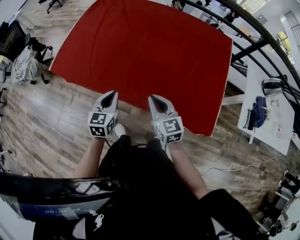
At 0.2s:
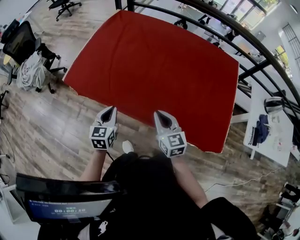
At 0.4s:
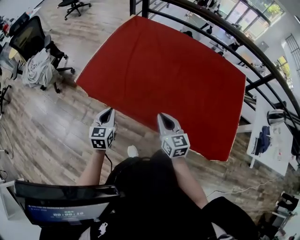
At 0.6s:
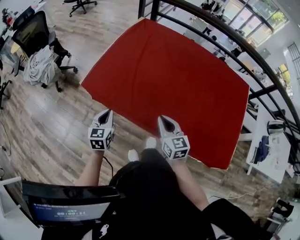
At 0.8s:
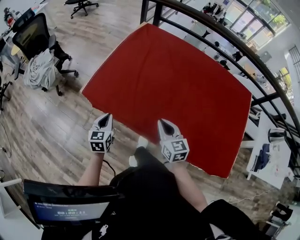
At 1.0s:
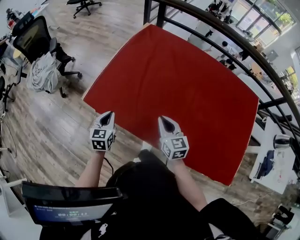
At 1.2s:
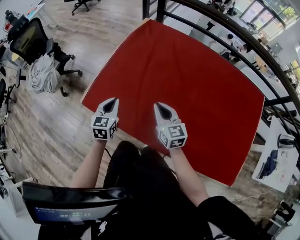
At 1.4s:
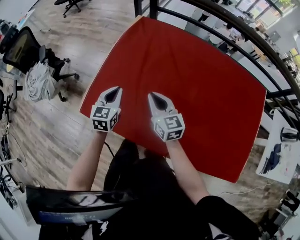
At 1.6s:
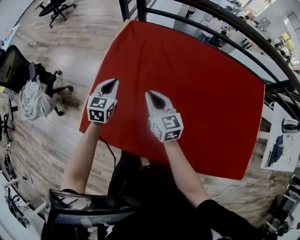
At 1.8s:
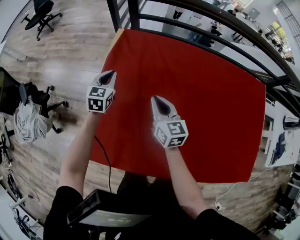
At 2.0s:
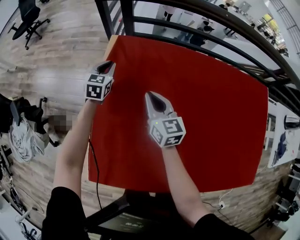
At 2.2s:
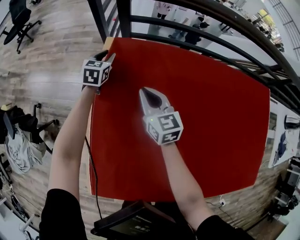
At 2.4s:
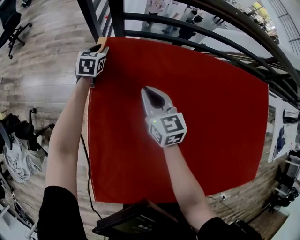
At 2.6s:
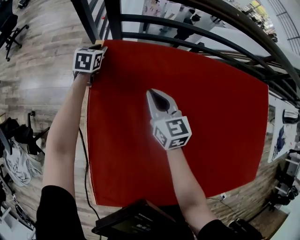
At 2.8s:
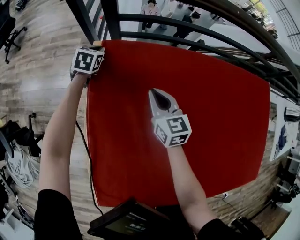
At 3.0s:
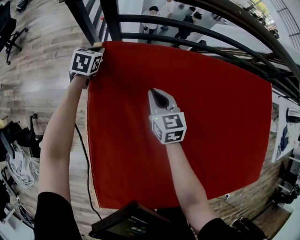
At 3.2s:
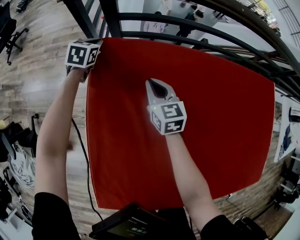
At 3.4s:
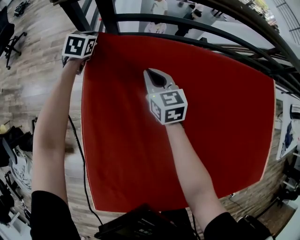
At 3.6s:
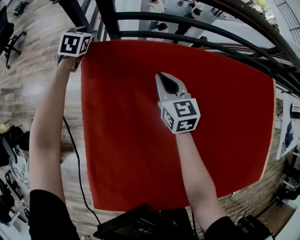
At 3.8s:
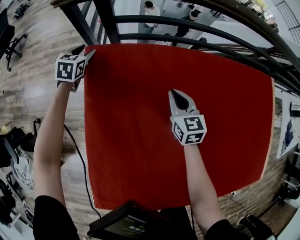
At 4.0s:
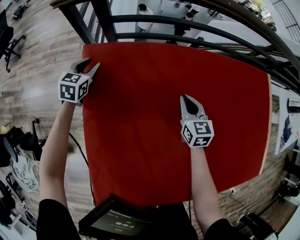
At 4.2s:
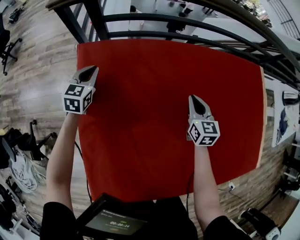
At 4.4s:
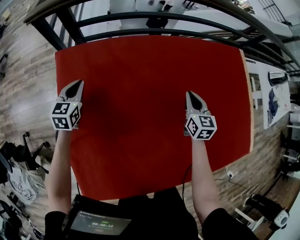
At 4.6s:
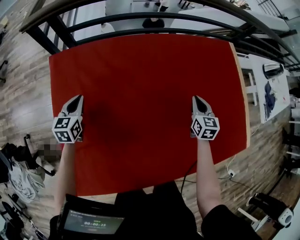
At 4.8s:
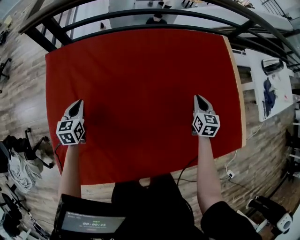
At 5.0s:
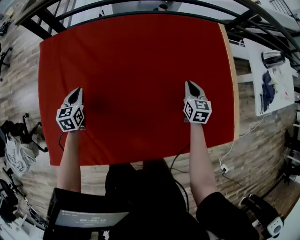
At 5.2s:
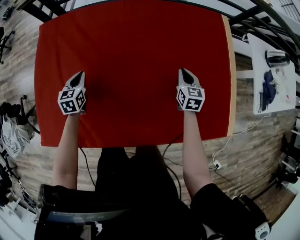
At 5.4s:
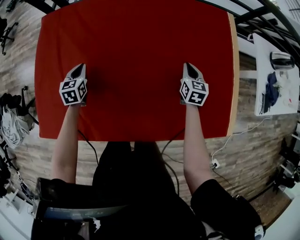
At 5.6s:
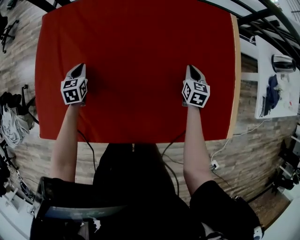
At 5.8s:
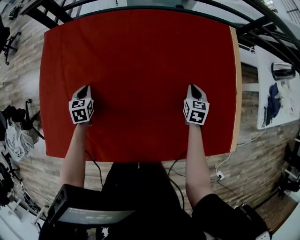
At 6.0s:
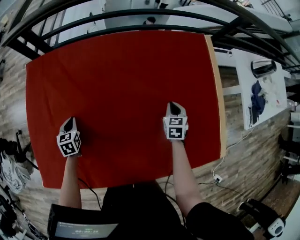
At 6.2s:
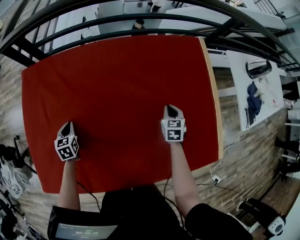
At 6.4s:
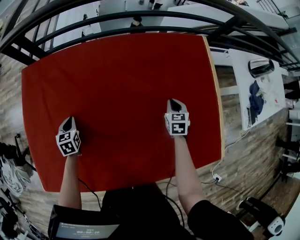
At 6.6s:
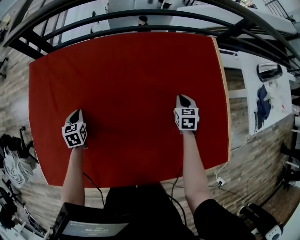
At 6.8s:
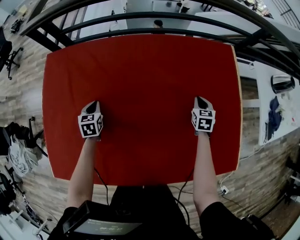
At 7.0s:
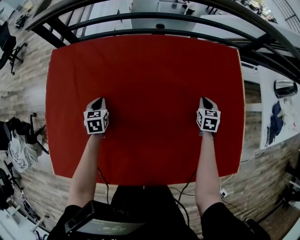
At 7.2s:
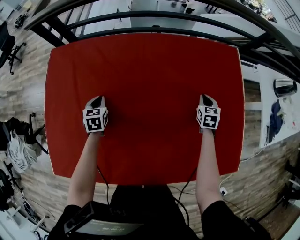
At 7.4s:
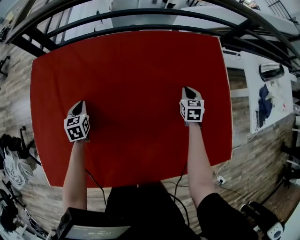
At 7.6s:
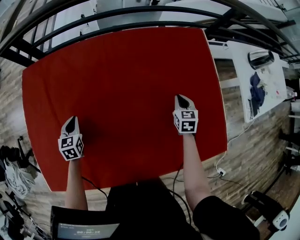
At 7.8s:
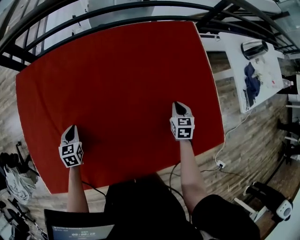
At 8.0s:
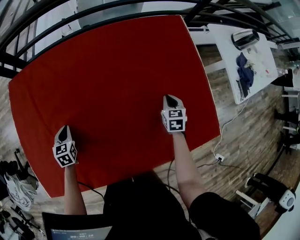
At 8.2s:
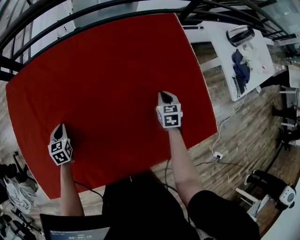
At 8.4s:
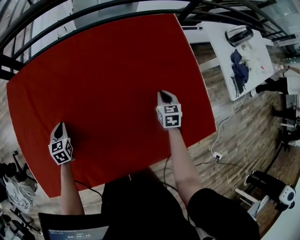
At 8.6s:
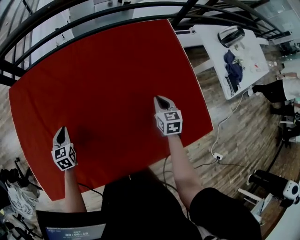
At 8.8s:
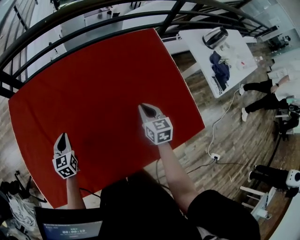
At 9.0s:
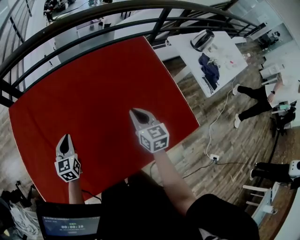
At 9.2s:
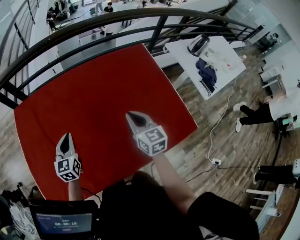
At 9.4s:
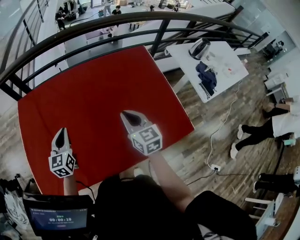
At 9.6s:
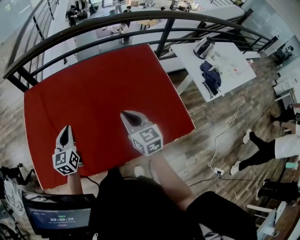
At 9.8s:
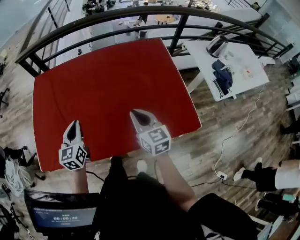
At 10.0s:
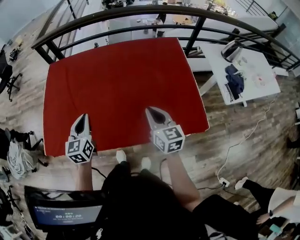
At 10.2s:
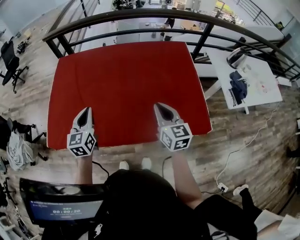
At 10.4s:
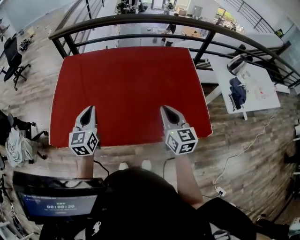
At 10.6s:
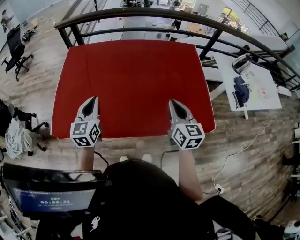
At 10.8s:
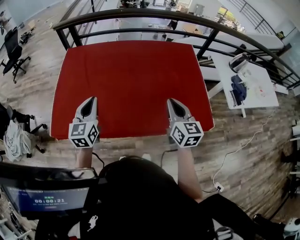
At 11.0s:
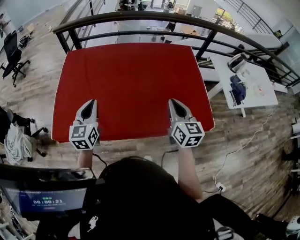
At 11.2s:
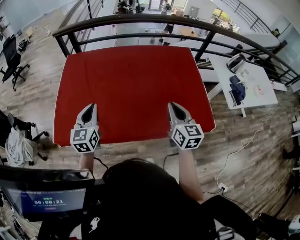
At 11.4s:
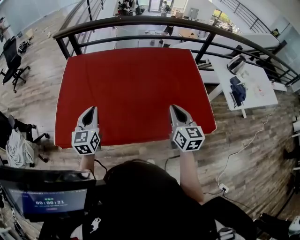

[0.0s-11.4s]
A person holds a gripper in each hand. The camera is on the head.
0.0s to 1.4s: The two grippers travel together, forward and to the left, some 50 cm.
1.4s to 2.8s: The left gripper shifts some 60 cm forward, changes its angle by some 30 degrees, and opens and closes again. Meanwhile the right gripper goes roughly 35 cm forward, and swivels approximately 30 degrees.
2.8s to 4.2s: The right gripper is displaced to the right by roughly 20 cm, while the left gripper shifts some 15 cm backward, and opens, then closes again.
4.2s to 5.6s: The left gripper heads to the right and backward, covering roughly 40 cm, and turns by some 20 degrees. Meanwhile the right gripper shifts approximately 40 cm to the right.
5.6s to 7.2s: Both grippers move forward, approximately 10 cm.
7.2s to 8.6s: The right gripper goes approximately 15 cm backward; the left gripper moves backward, roughly 10 cm.
8.6s to 10.0s: The right gripper heads backward and upward, covering some 30 cm, and turns by approximately 30 degrees, while the left gripper moves backward, upward and to the right, approximately 35 cm, and changes its angle by some 20 degrees.
10.0s to 11.4s: The right gripper travels upward by about 5 cm. Meanwhile the left gripper moves to the left, roughly 10 cm.

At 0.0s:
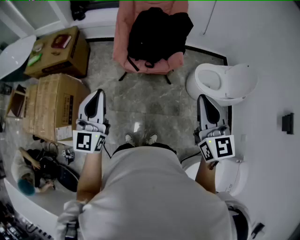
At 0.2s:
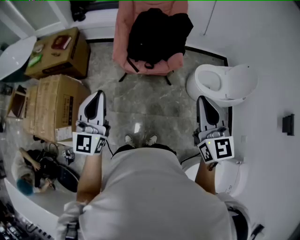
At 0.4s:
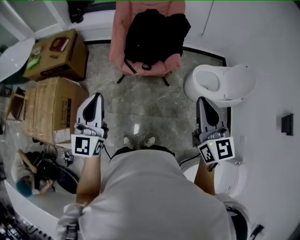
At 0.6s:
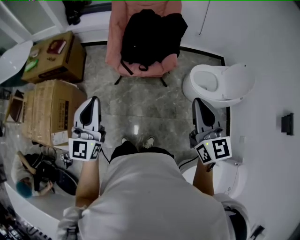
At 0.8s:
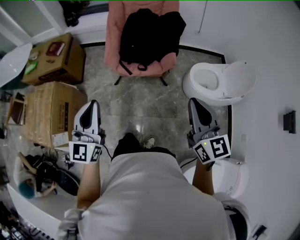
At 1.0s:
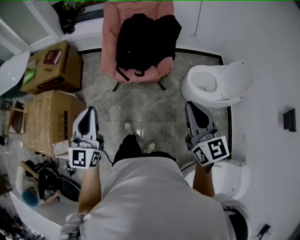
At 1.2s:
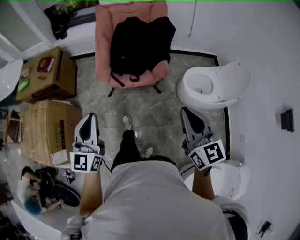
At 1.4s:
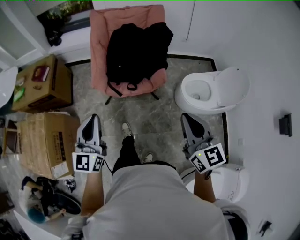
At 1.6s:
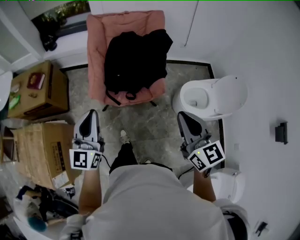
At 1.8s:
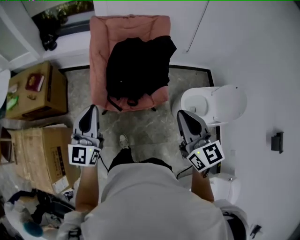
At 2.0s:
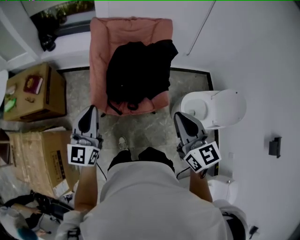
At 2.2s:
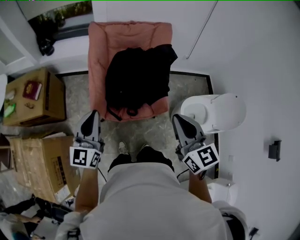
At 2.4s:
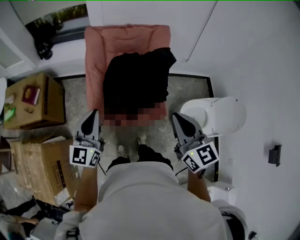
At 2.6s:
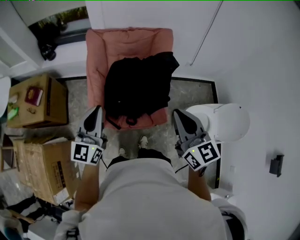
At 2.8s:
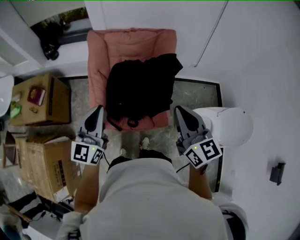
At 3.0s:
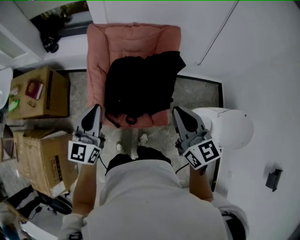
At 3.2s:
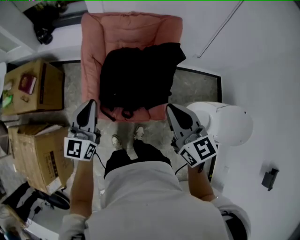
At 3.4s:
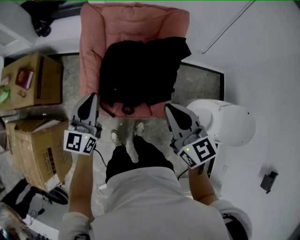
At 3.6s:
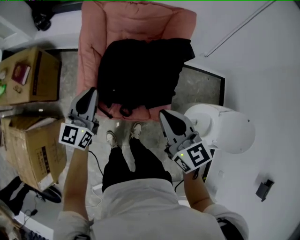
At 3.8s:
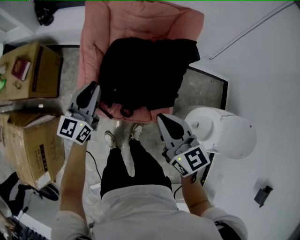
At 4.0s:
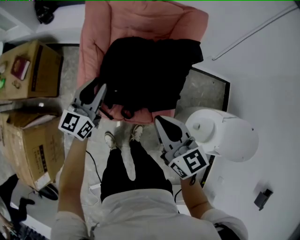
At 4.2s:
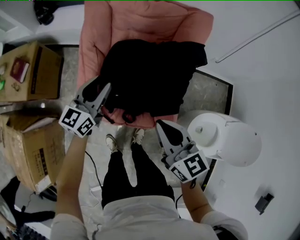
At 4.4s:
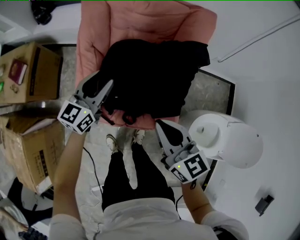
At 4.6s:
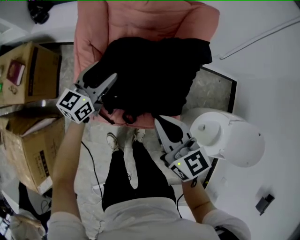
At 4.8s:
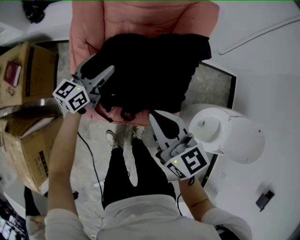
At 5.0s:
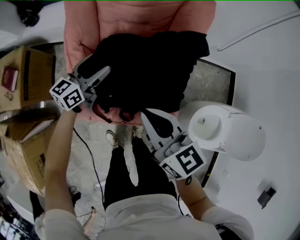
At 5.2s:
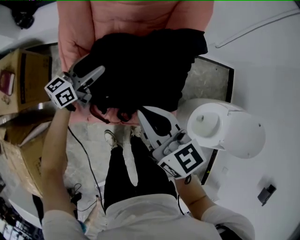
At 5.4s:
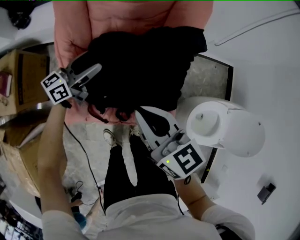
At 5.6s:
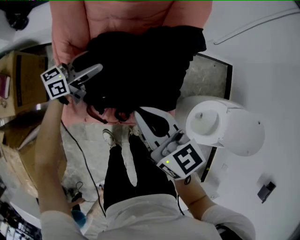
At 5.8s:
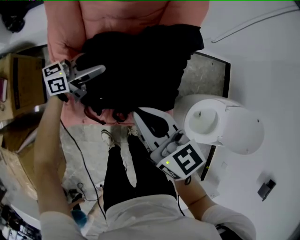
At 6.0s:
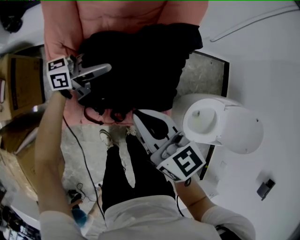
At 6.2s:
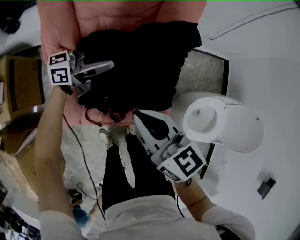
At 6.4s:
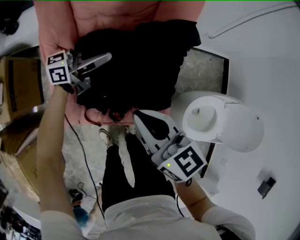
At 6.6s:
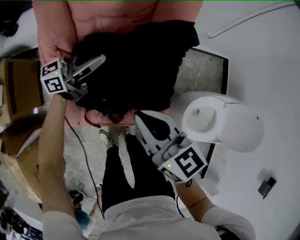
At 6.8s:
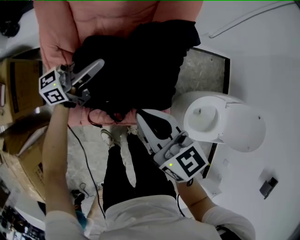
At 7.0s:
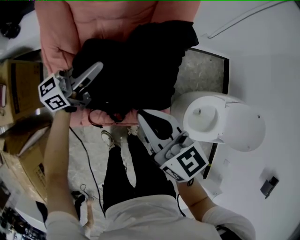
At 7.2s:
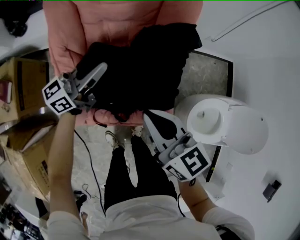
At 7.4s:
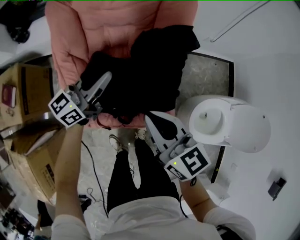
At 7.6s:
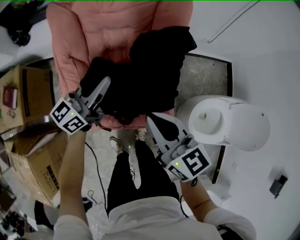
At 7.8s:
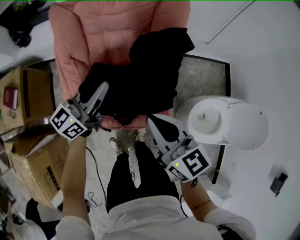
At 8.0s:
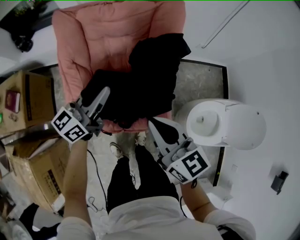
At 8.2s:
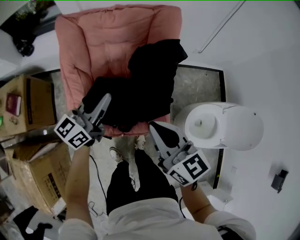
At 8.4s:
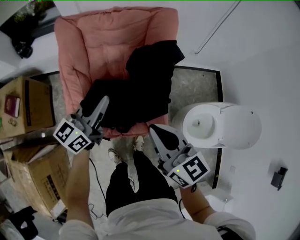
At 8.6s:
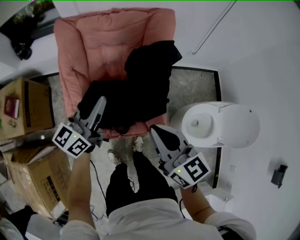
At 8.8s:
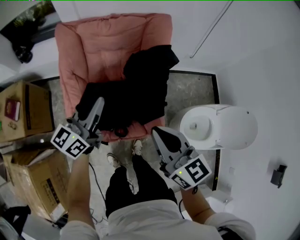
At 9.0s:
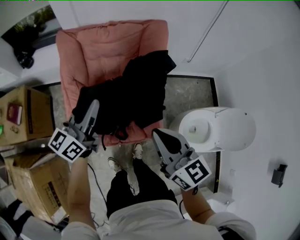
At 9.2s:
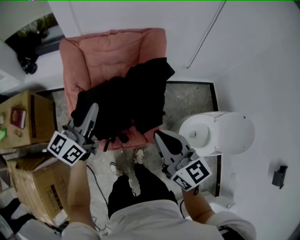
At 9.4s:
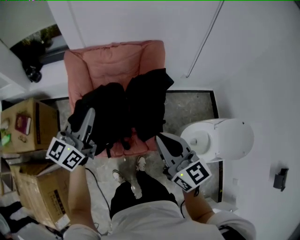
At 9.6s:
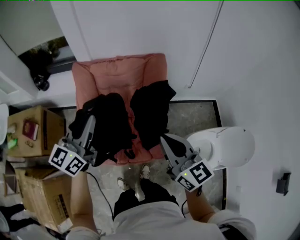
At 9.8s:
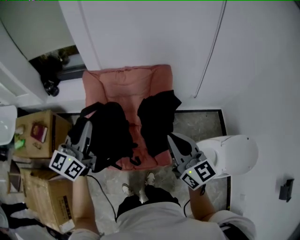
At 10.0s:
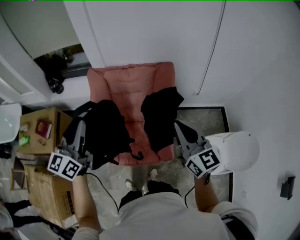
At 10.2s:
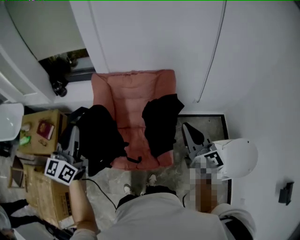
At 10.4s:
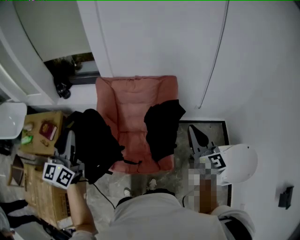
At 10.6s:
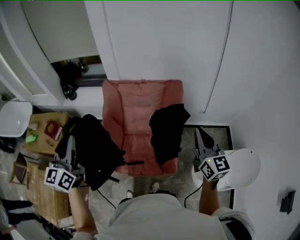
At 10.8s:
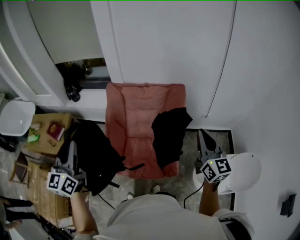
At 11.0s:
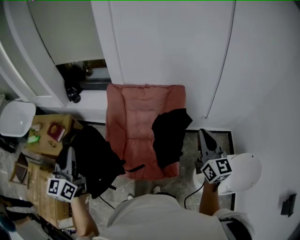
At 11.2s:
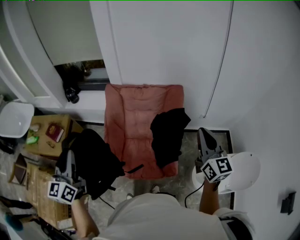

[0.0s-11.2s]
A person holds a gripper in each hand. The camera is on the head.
0.0s to 1.6s: The two grippers go roughly 20 cm forward.
1.6s to 3.2s: Both grippers travel together forward, approximately 30 cm.
3.2s to 4.8s: The right gripper shifts some 20 cm downward, forward and to the left, while the left gripper travels forward and downward by about 30 cm, rotates roughly 30 degrees, and opens.
4.8s to 6.4s: The left gripper is displaced to the right and forward by some 10 cm, rotates about 40 degrees, and closes.
6.4s to 8.0s: The right gripper is displaced upward by approximately 5 cm. Meanwhile the left gripper heads backward and upward, covering about 15 cm, turns by approximately 30 degrees, and closes its fingers.
8.0s to 9.6s: The grippers both shift upward by about 15 cm. The left gripper rotates about 20 degrees.
9.6s to 11.2s: The right gripper shifts roughly 15 cm upward and to the right; the left gripper shifts roughly 25 cm to the left and backward, and swivels approximately 30 degrees.

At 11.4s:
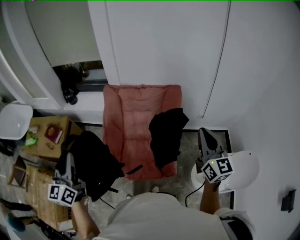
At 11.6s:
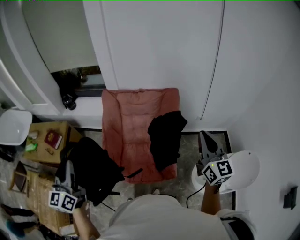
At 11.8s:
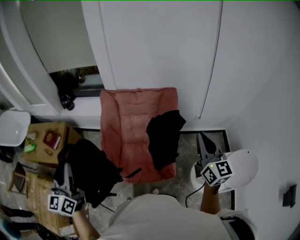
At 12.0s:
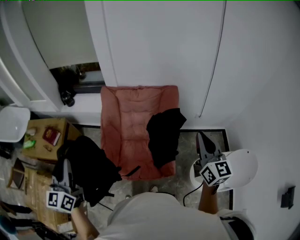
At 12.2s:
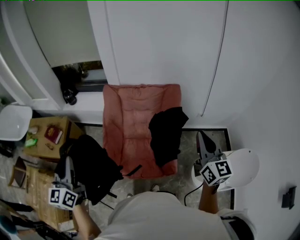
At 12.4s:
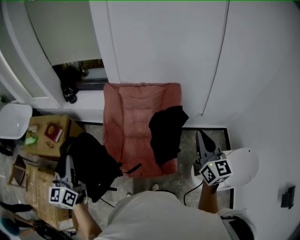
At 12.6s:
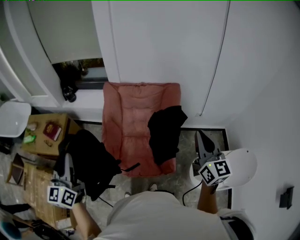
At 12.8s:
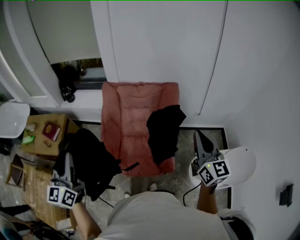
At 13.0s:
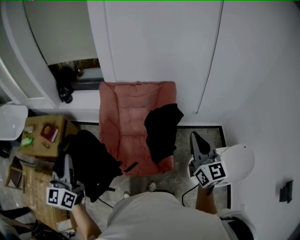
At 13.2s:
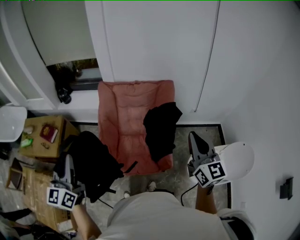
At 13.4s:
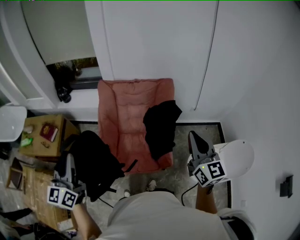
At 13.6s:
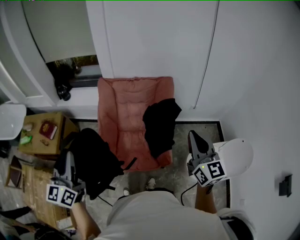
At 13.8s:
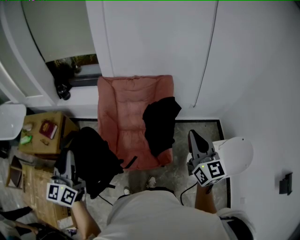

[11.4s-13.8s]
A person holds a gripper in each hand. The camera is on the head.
11.4s to 12.6s: The grippers make only small movements.
12.6s to 13.8s: The right gripper goes about 5 cm backward.
